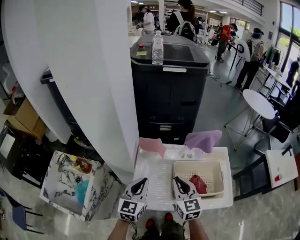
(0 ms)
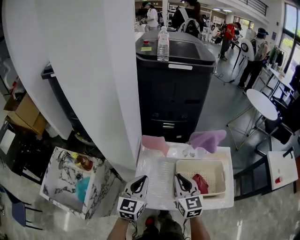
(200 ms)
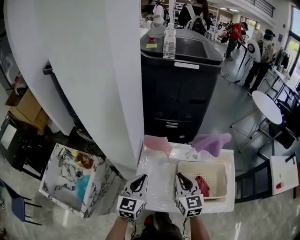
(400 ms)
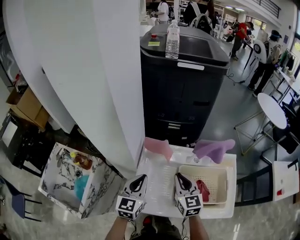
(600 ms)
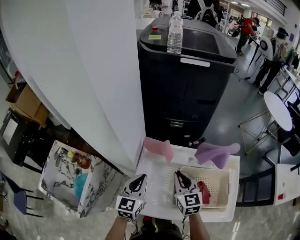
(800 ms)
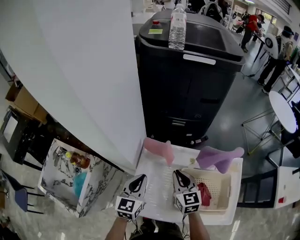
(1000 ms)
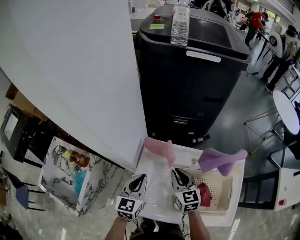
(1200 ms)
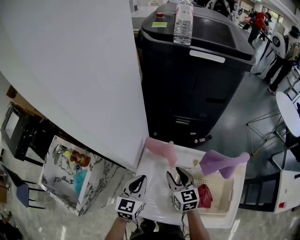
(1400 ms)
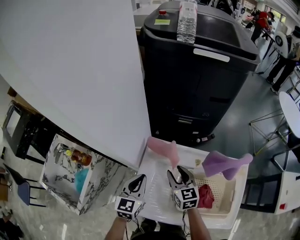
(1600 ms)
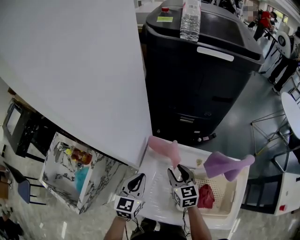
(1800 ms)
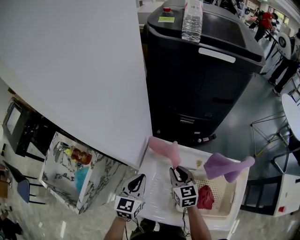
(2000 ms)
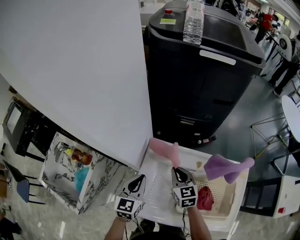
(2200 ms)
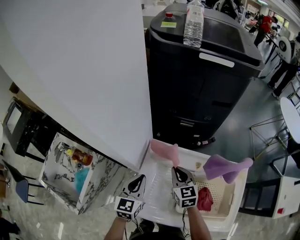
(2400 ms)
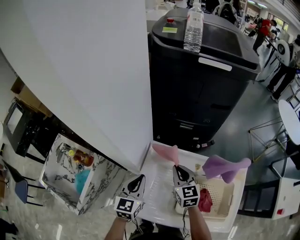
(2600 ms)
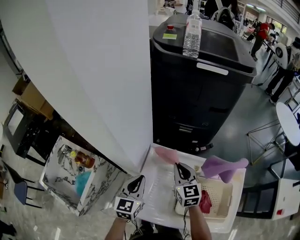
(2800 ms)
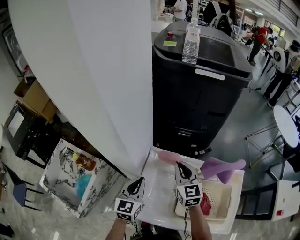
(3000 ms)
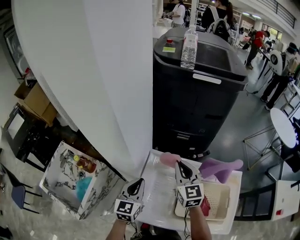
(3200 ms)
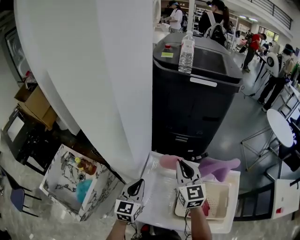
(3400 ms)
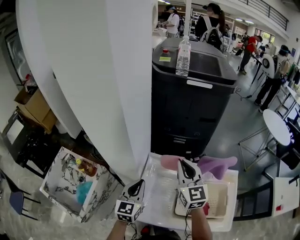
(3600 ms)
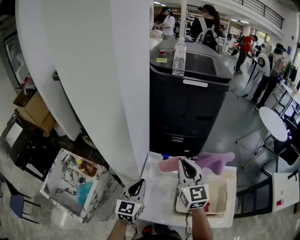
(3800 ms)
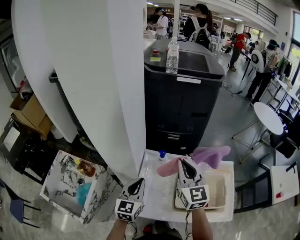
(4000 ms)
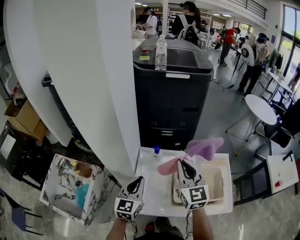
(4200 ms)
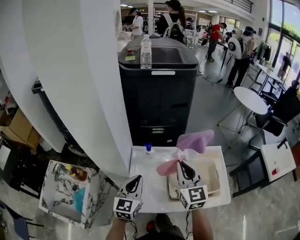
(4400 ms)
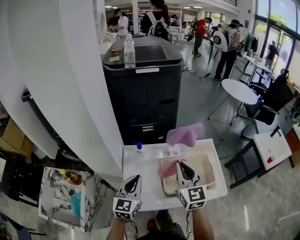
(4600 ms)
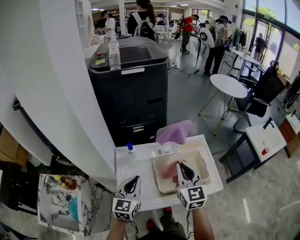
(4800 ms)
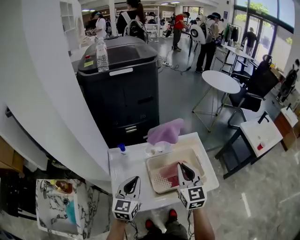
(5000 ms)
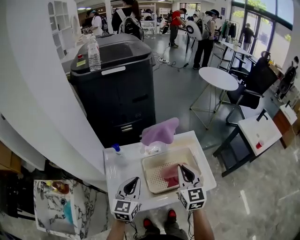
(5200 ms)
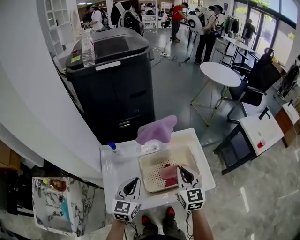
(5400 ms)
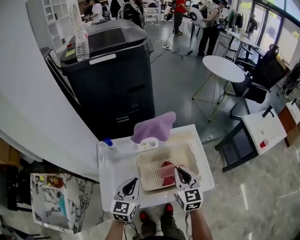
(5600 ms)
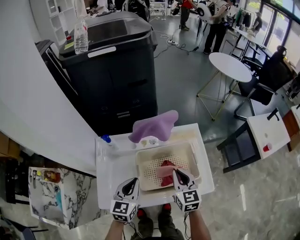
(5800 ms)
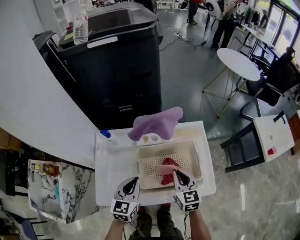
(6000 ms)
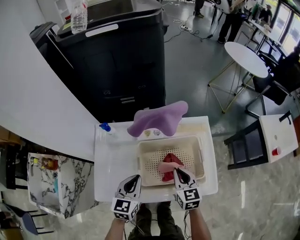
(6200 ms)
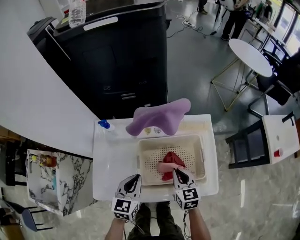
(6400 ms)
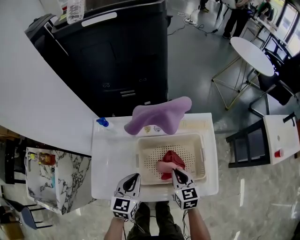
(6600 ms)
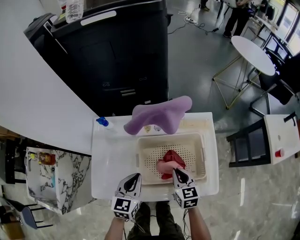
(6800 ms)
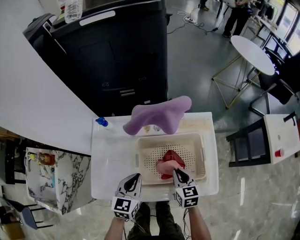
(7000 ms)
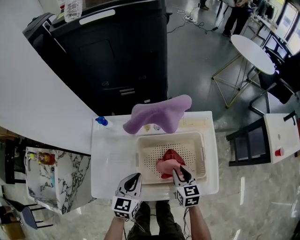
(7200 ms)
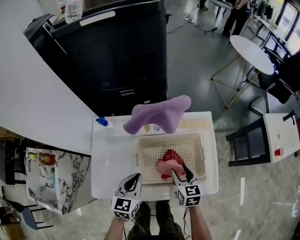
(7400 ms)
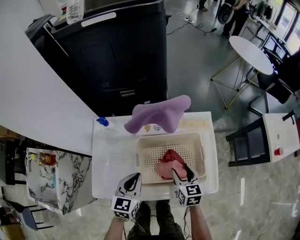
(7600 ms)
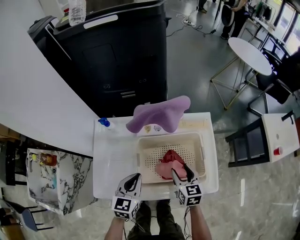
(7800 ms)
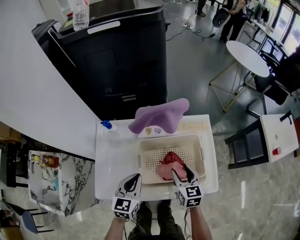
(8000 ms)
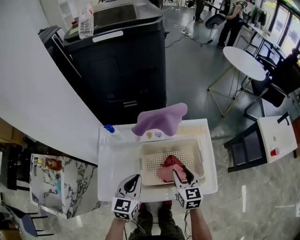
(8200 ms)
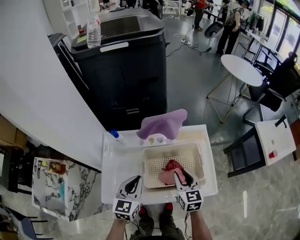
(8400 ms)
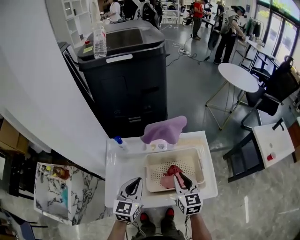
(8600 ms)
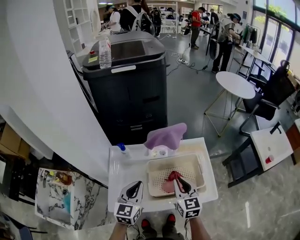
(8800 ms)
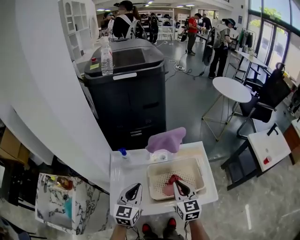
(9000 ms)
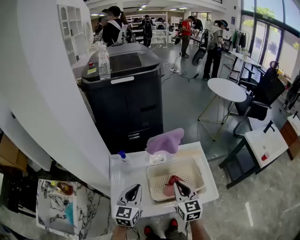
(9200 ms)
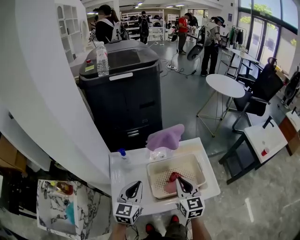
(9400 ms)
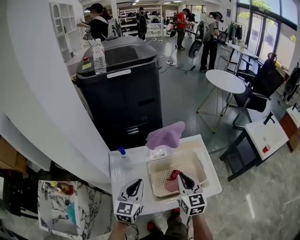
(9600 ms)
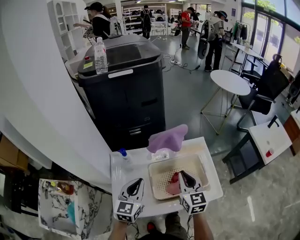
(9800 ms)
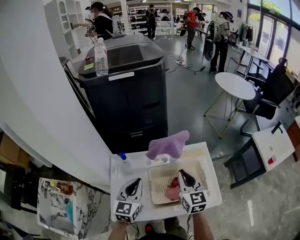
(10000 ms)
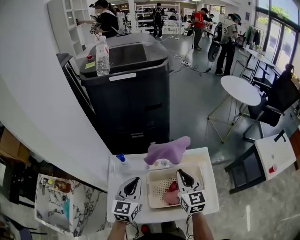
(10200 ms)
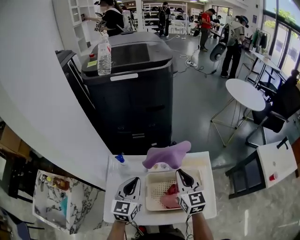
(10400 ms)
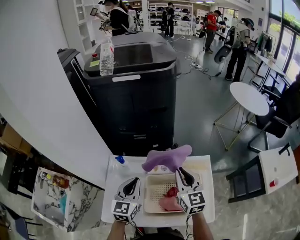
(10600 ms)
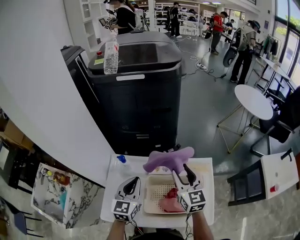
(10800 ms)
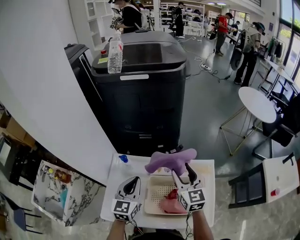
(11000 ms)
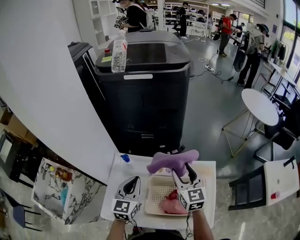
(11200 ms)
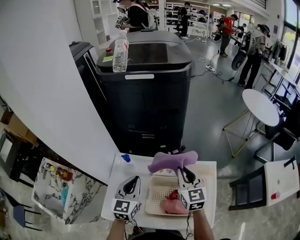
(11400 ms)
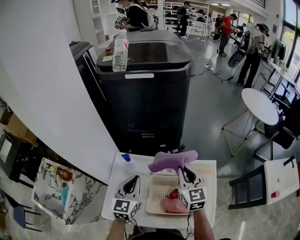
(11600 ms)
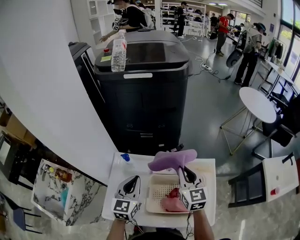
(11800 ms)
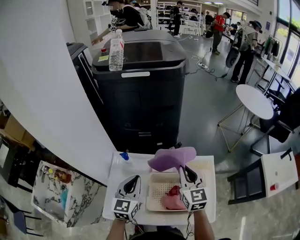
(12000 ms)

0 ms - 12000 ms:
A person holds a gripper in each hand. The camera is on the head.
0 ms - 1600 ms: Both grippers travel together forward and downward, approximately 15 cm. The right gripper opens its fingers.
1600 ms - 3000 ms: The right gripper moves upward, some 10 cm, and closes its fingers.
3000 ms - 4400 ms: The left gripper goes roughly 10 cm backward and upward. Meanwhile the right gripper is displaced backward, upward and to the right by about 20 cm, and swivels about 20 degrees.
4400 ms - 6000 ms: The left gripper heads to the right and downward, covering roughly 20 cm; the right gripper is displaced downward and to the right by some 30 cm, and turns by about 30 degrees.
6000 ms - 7600 ms: The right gripper travels downward by roughly 10 cm, and opens up.
7600 ms - 9000 ms: The grippers both shift upward and to the left by approximately 15 cm. The right gripper swivels about 20 degrees, and closes.
9000 ms - 10400 ms: Both grippers travel together forward, approximately 10 cm.
10400 ms - 12000 ms: The right gripper opens, then closes once more.

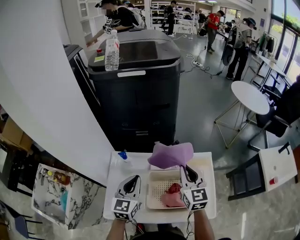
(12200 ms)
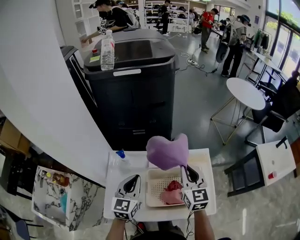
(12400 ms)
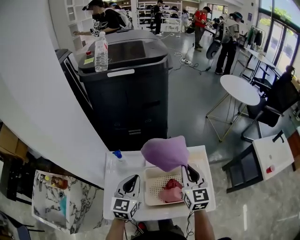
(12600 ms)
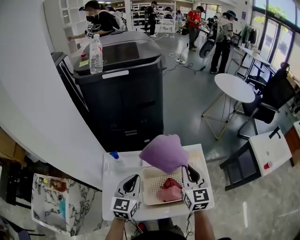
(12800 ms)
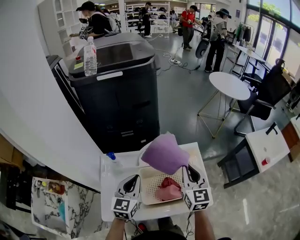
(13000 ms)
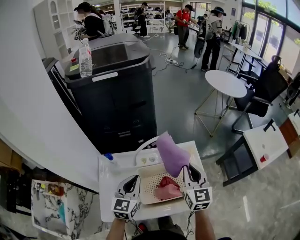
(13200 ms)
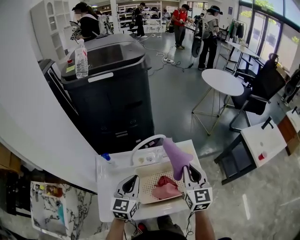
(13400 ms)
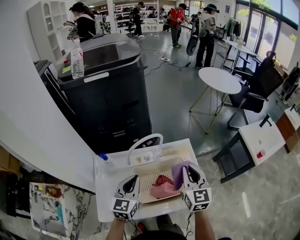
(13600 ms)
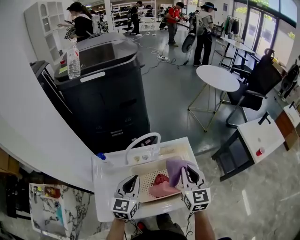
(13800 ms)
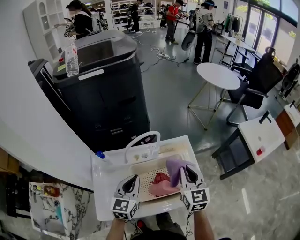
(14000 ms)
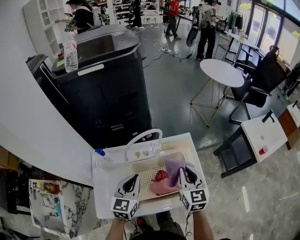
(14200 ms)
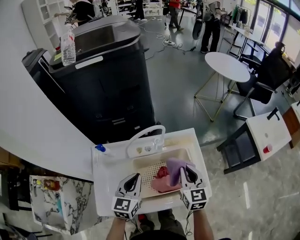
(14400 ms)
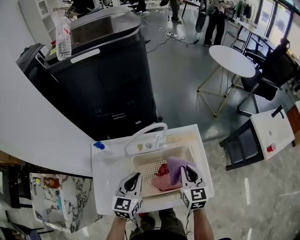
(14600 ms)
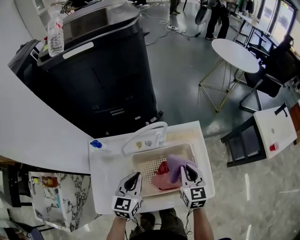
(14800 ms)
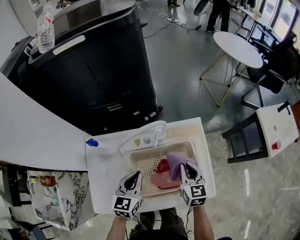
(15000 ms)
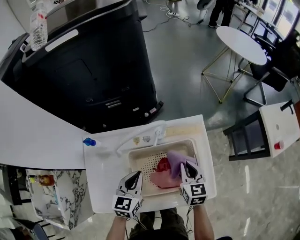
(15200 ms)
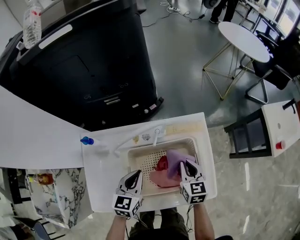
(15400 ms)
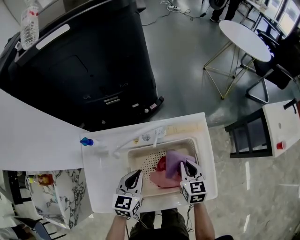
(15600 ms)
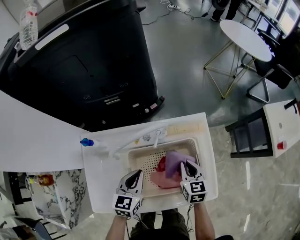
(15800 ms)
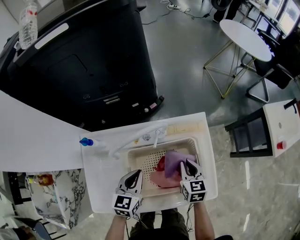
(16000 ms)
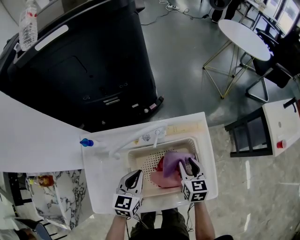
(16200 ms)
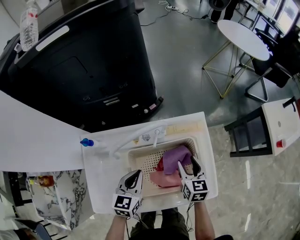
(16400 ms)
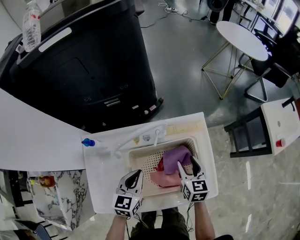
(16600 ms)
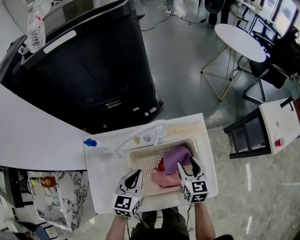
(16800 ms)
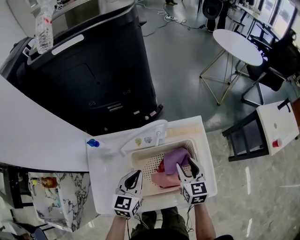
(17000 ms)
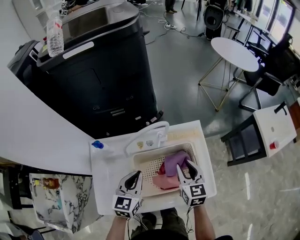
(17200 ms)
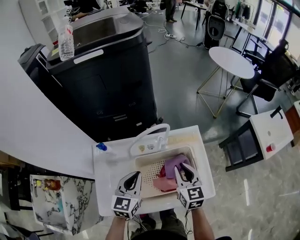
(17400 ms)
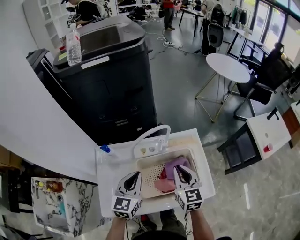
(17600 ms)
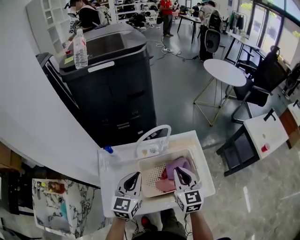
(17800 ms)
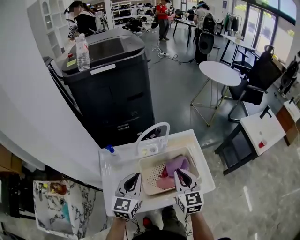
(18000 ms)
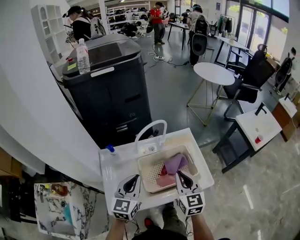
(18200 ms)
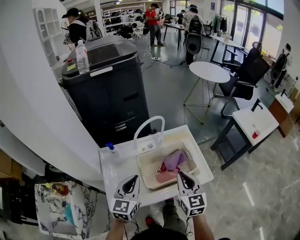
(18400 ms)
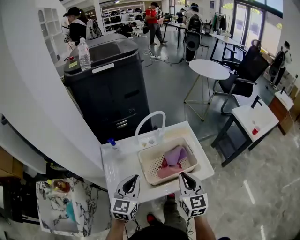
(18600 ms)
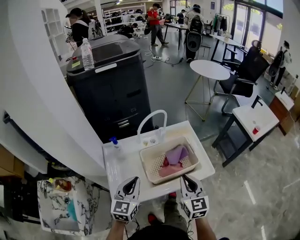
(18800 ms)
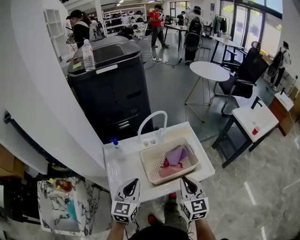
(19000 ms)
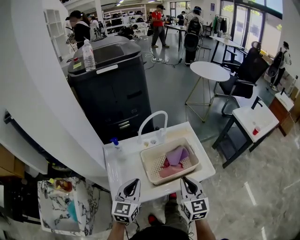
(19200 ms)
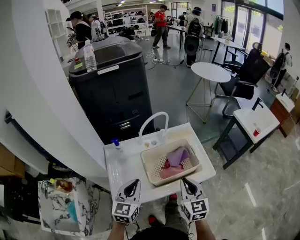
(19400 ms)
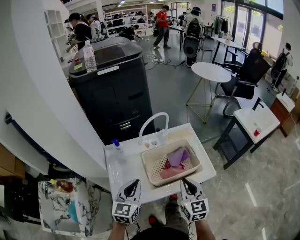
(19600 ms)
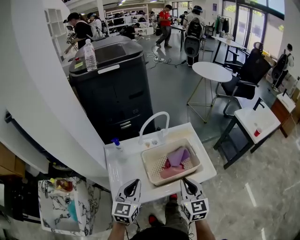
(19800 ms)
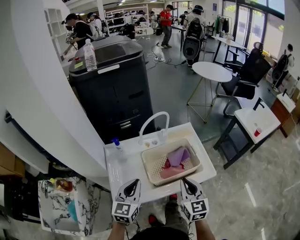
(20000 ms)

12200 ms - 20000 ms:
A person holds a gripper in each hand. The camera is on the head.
12200 ms - 13800 ms: The right gripper goes roughly 15 cm to the right and backward. Meanwhile the left gripper shifts about 10 cm to the right.
13800 ms - 15400 ms: The right gripper travels downward by approximately 20 cm, and rotates approximately 20 degrees. The left gripper travels downward by approximately 15 cm.
15400 ms - 16800 ms: The right gripper opens up.
16800 ms - 18400 ms: The left gripper goes some 20 cm upward, backward and to the left; the right gripper shifts some 25 cm backward and upward, turns by some 20 degrees, and closes up.
18400 ms - 20000 ms: The right gripper heads backward, covering roughly 5 cm, while the left gripper moves about 5 cm.

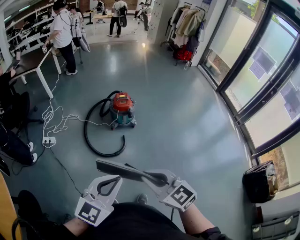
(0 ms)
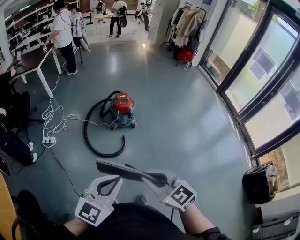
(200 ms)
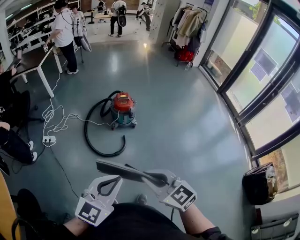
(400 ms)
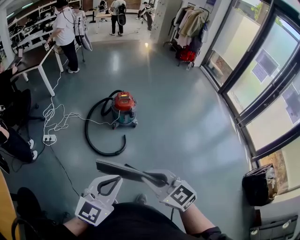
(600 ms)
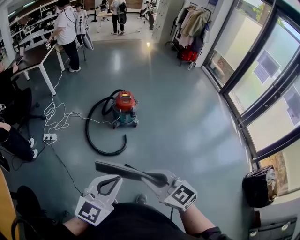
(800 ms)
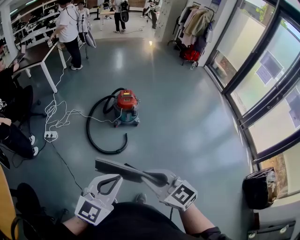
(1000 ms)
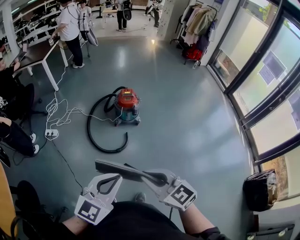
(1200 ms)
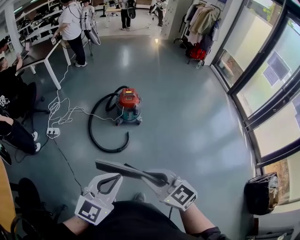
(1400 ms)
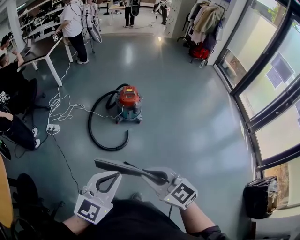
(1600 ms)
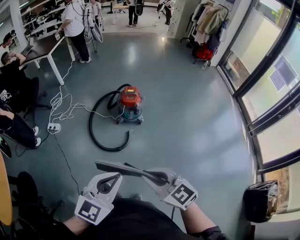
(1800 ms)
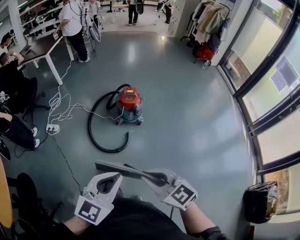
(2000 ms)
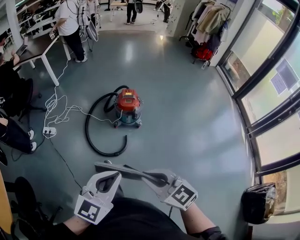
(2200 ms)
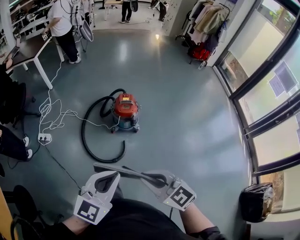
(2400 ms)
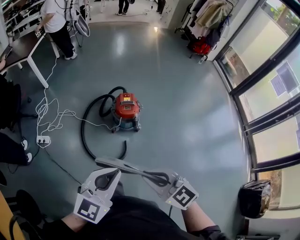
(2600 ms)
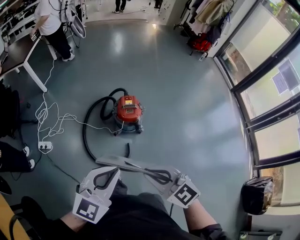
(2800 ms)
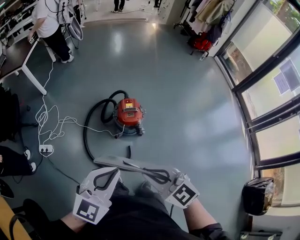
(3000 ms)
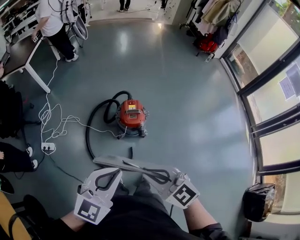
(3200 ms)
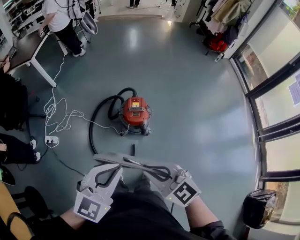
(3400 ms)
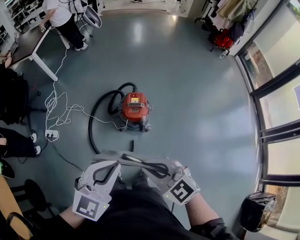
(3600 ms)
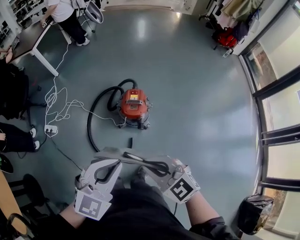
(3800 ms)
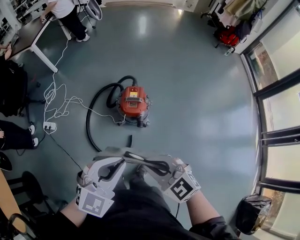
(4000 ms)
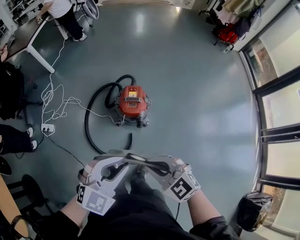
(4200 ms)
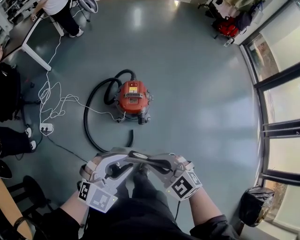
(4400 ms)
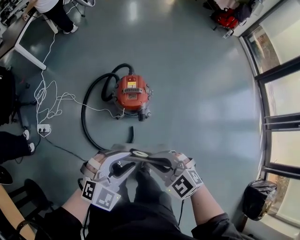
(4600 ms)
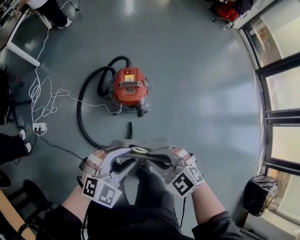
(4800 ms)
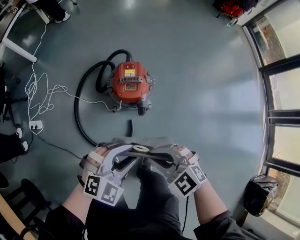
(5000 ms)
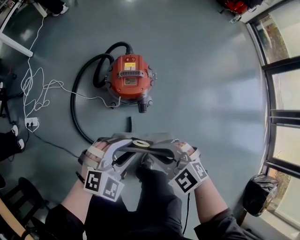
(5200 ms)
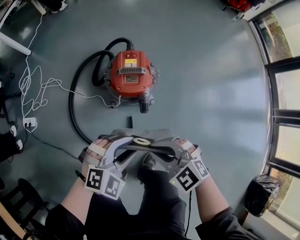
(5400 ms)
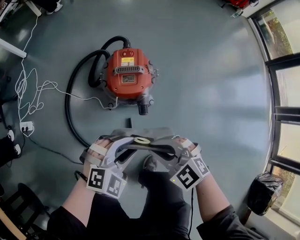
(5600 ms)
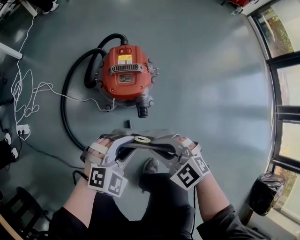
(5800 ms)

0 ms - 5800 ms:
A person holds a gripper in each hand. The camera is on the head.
0 ms - 1400 ms: The left gripper moves approximately 5 cm.
1400 ms - 2800 ms: Both grippers travel together forward, approximately 35 cm.
2800 ms - 4400 ms: The left gripper shifts roughly 20 cm downward, to the right and forward, swivels roughly 20 degrees, and opens, while the right gripper heads downward, forward and to the right, covering some 20 cm.
4400 ms - 5800 ms: The two grippers go about 35 cm downward.
